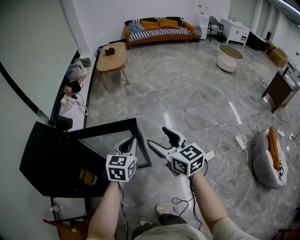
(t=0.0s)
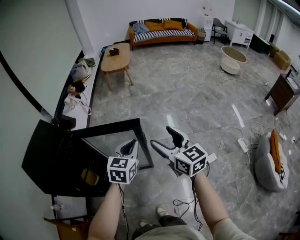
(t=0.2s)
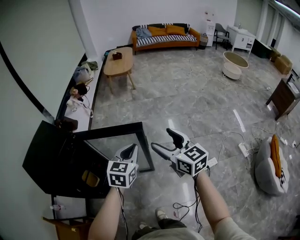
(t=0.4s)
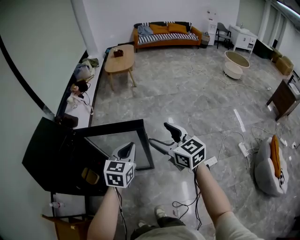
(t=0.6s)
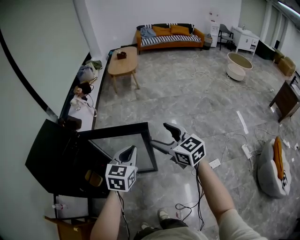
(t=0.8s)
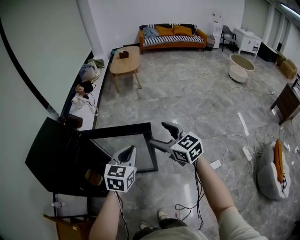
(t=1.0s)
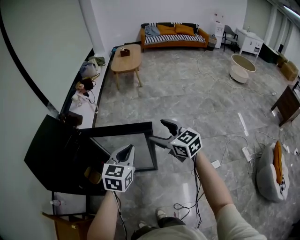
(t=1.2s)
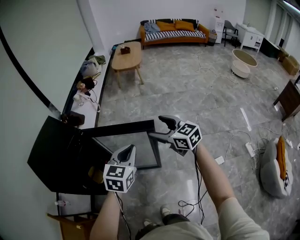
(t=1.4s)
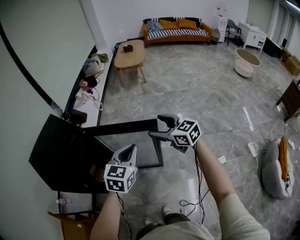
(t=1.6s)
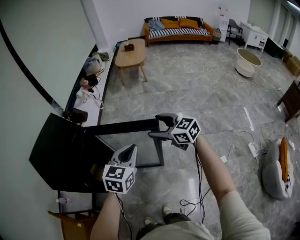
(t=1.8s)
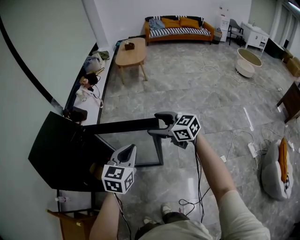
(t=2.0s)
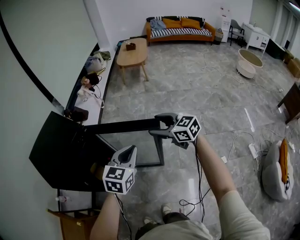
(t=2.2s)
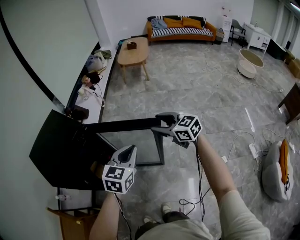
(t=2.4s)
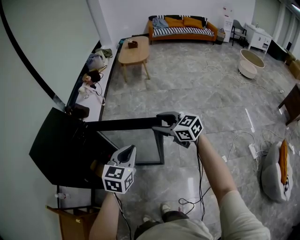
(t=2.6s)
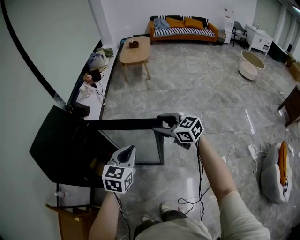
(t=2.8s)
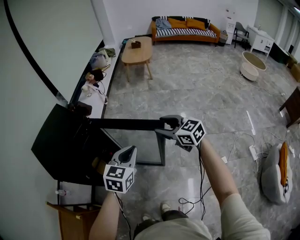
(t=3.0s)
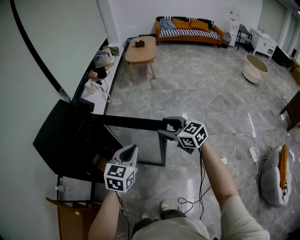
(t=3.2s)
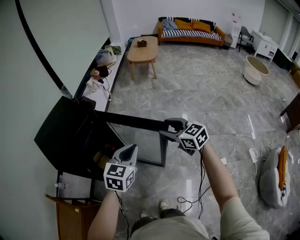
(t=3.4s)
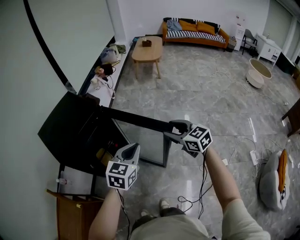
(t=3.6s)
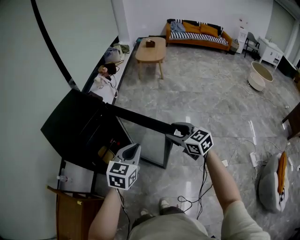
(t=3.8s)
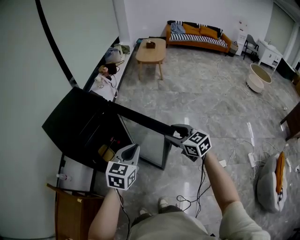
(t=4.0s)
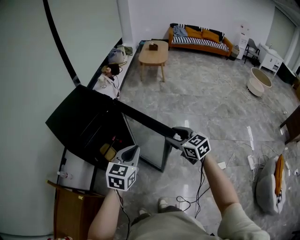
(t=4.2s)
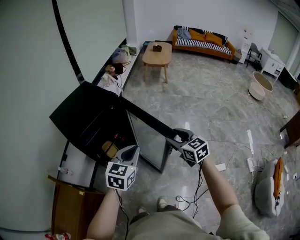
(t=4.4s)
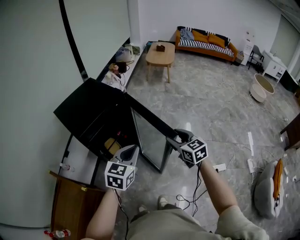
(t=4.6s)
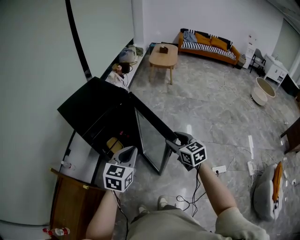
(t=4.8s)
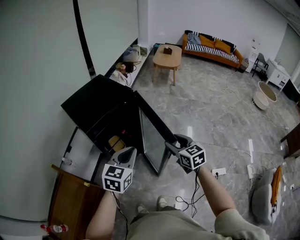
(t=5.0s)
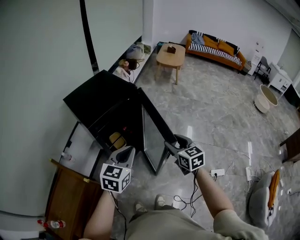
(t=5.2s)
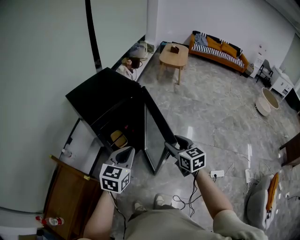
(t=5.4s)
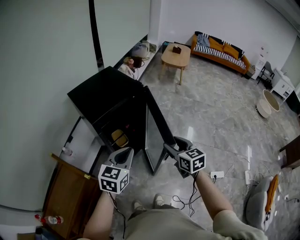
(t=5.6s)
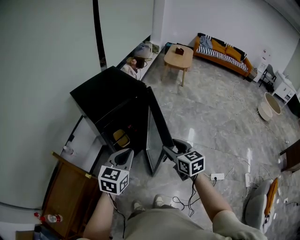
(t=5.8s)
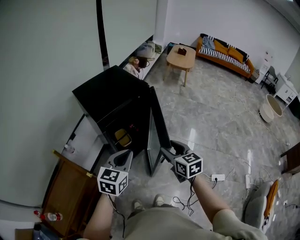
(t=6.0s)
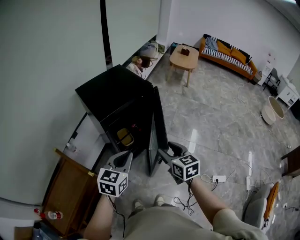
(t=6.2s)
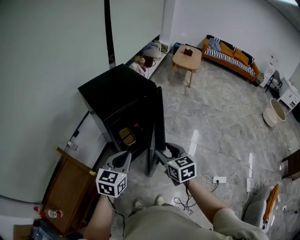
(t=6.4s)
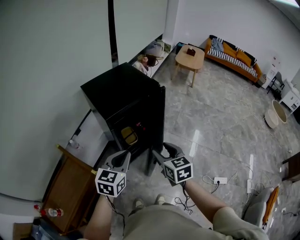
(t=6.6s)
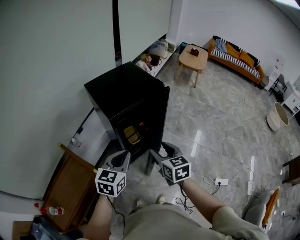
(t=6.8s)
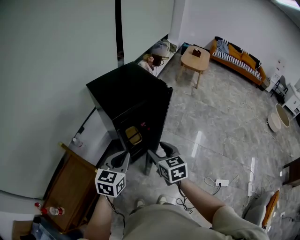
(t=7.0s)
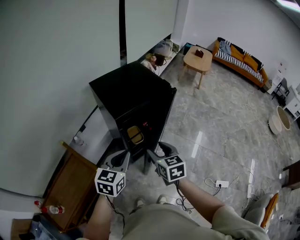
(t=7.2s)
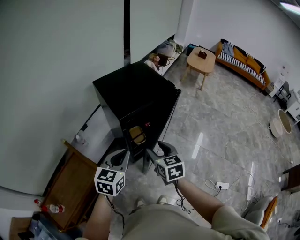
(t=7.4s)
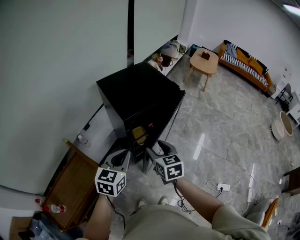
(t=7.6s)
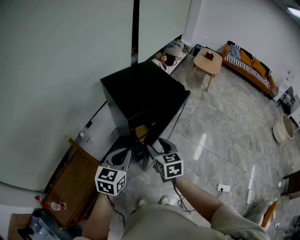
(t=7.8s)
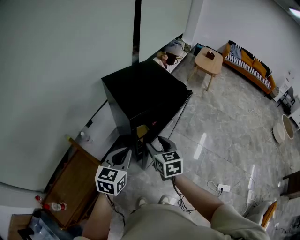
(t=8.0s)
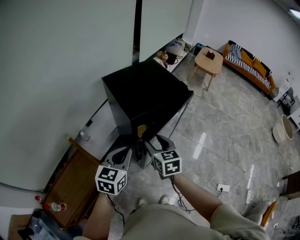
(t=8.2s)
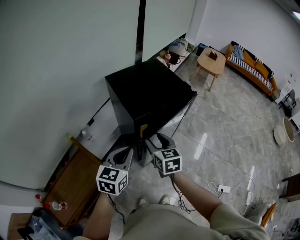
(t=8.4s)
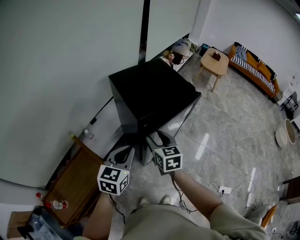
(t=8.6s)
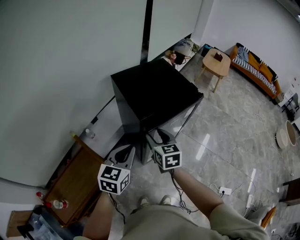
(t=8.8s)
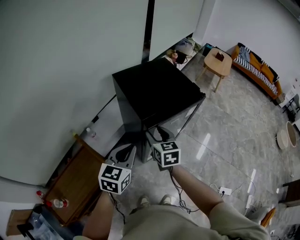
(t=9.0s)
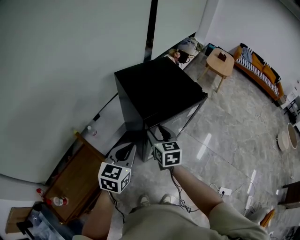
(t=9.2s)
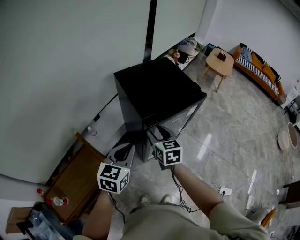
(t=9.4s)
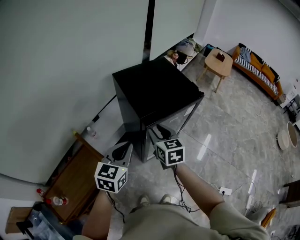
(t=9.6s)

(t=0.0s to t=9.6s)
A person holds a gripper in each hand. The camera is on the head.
t=0.0s - t=1.6s: The right gripper goes some 15 cm forward and to the left, and swivels approximately 30 degrees; the left gripper travels to the left by about 10 cm.
t=1.6s - t=3.2s: The left gripper moves to the left, approximately 5 cm.
t=3.2s - t=4.8s: Both grippers travel together to the left and backward, about 20 cm.
t=4.8s - t=6.4s: Both grippers move to the left, some 15 cm.
t=6.4s - t=8.0s: The right gripper travels to the left and forward by approximately 20 cm. The left gripper is displaced to the left by about 10 cm.
t=8.0s - t=9.6s: The right gripper is displaced forward by about 5 cm.

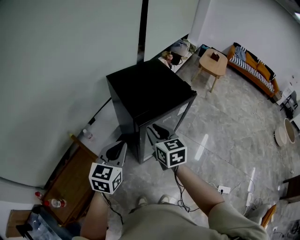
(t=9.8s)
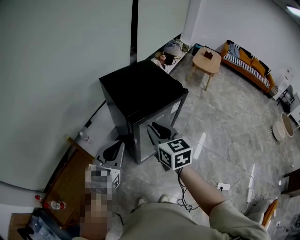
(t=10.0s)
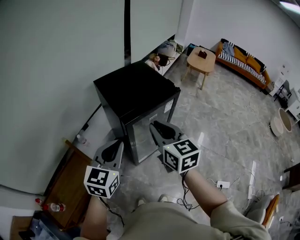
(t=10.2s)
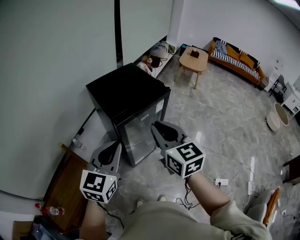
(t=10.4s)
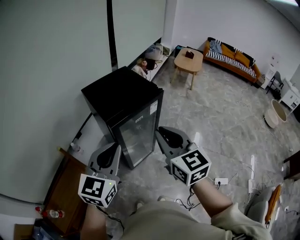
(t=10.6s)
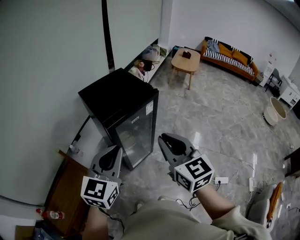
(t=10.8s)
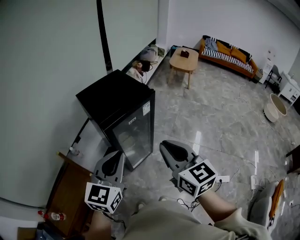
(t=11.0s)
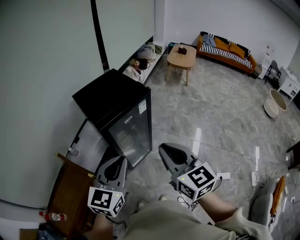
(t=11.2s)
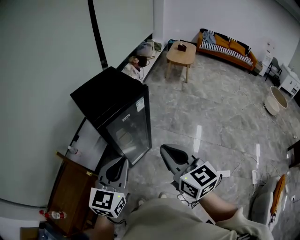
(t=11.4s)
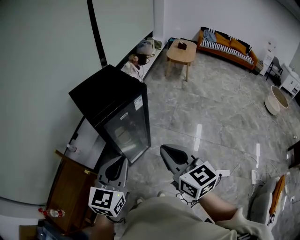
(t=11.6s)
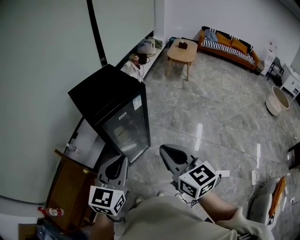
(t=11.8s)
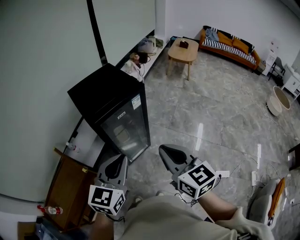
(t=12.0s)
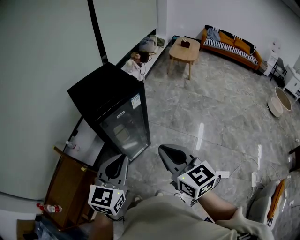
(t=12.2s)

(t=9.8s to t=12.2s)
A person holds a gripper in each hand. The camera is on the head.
t=9.8s - t=11.0s: The grippers both shift to the right, backward and upward by roughly 25 cm.
t=11.0s - t=12.2s: Both grippers travel together to the right, roughly 10 cm.

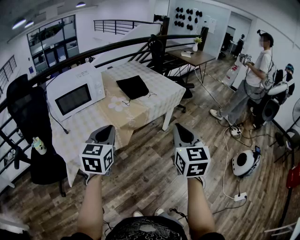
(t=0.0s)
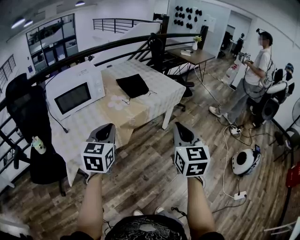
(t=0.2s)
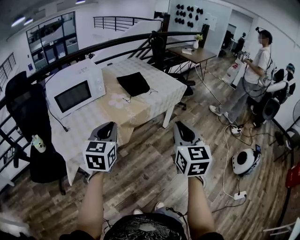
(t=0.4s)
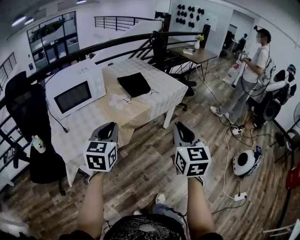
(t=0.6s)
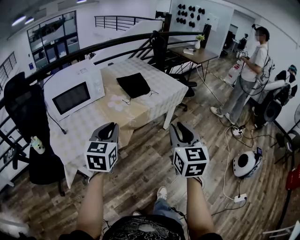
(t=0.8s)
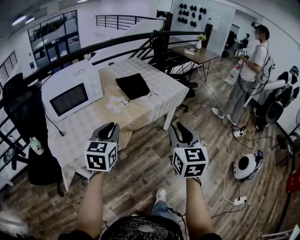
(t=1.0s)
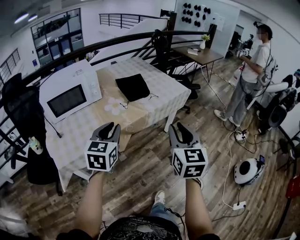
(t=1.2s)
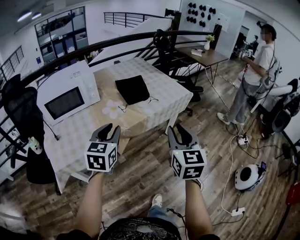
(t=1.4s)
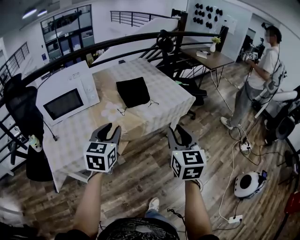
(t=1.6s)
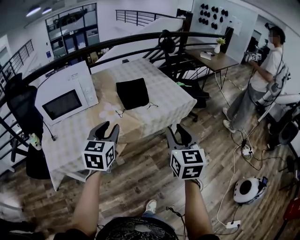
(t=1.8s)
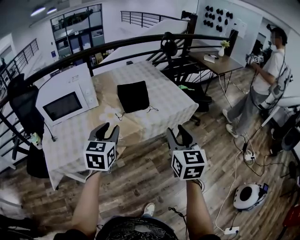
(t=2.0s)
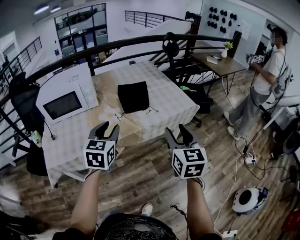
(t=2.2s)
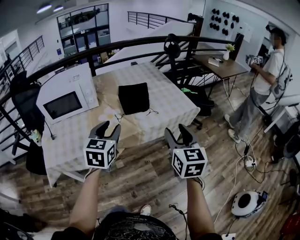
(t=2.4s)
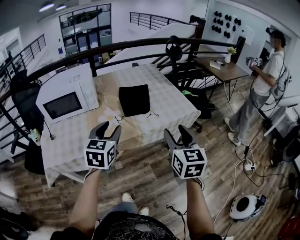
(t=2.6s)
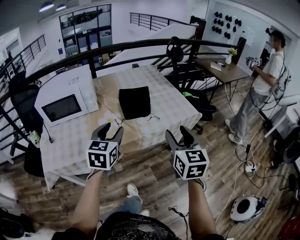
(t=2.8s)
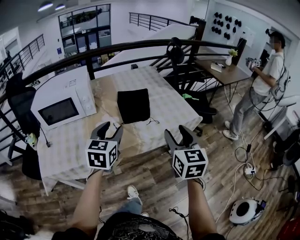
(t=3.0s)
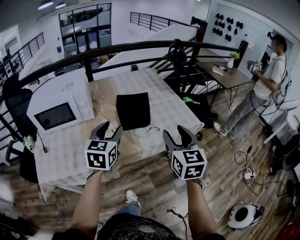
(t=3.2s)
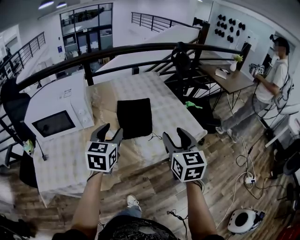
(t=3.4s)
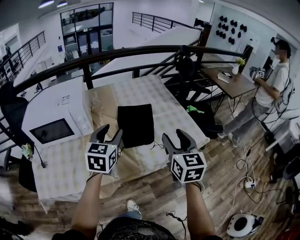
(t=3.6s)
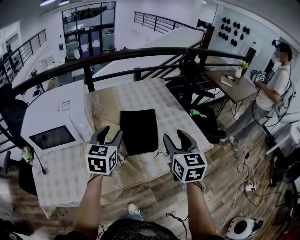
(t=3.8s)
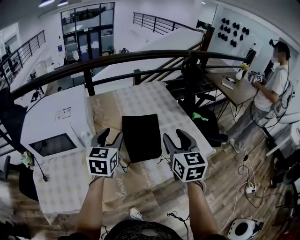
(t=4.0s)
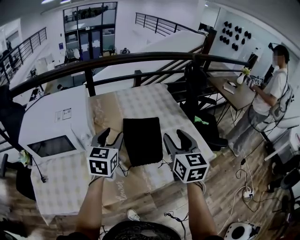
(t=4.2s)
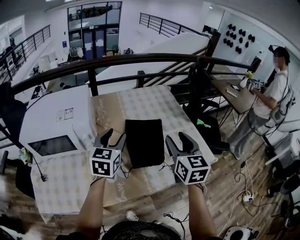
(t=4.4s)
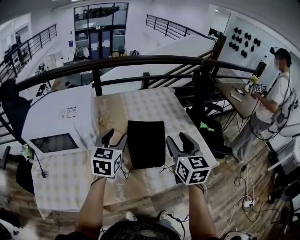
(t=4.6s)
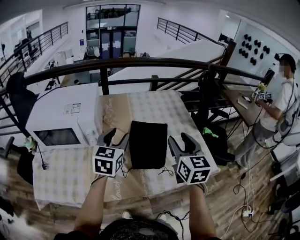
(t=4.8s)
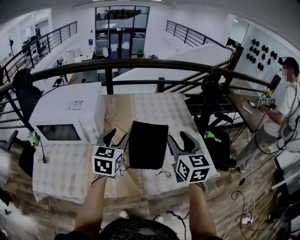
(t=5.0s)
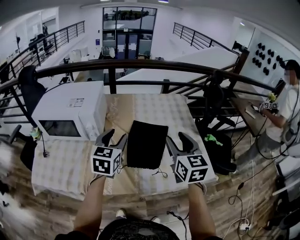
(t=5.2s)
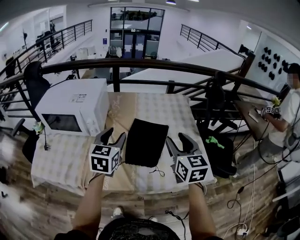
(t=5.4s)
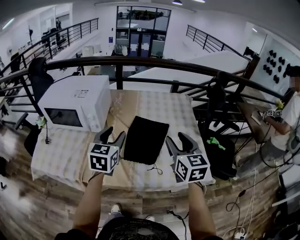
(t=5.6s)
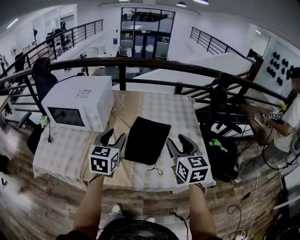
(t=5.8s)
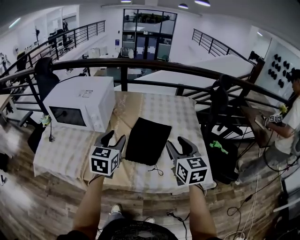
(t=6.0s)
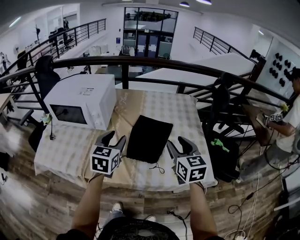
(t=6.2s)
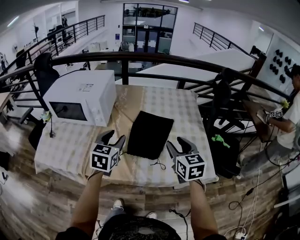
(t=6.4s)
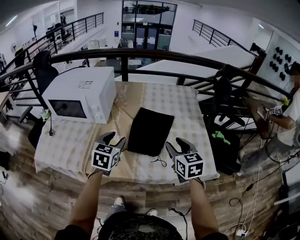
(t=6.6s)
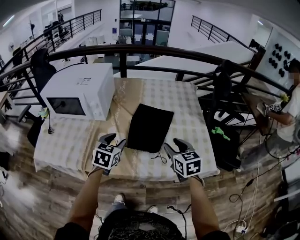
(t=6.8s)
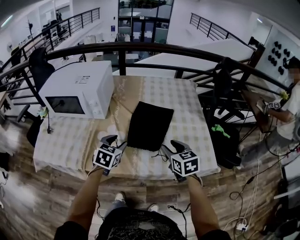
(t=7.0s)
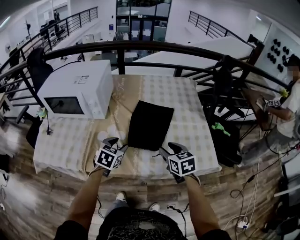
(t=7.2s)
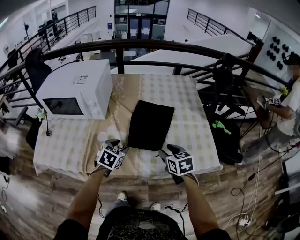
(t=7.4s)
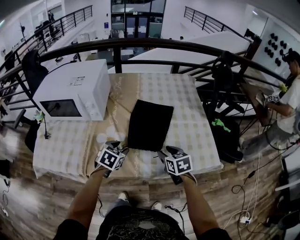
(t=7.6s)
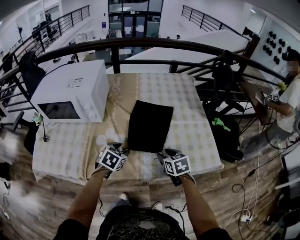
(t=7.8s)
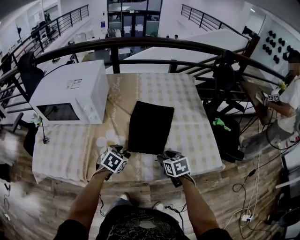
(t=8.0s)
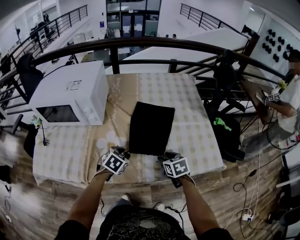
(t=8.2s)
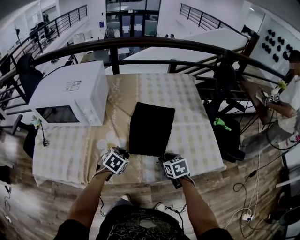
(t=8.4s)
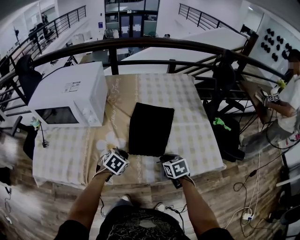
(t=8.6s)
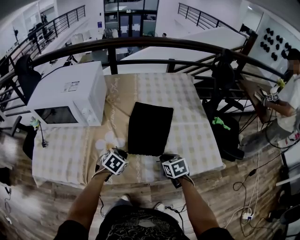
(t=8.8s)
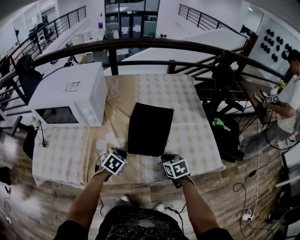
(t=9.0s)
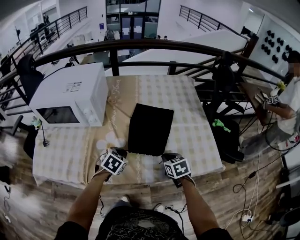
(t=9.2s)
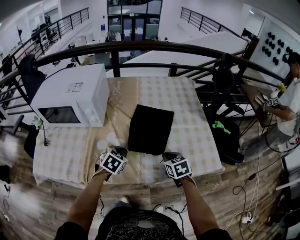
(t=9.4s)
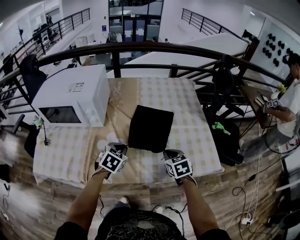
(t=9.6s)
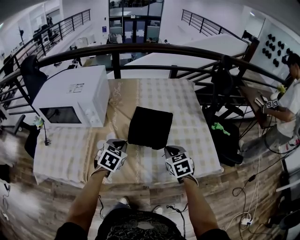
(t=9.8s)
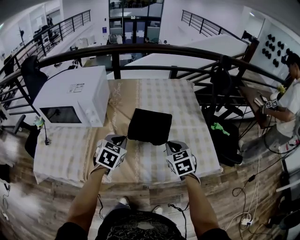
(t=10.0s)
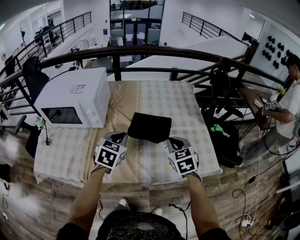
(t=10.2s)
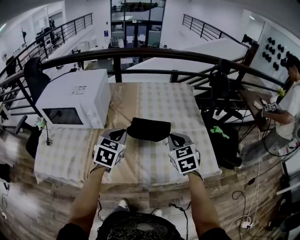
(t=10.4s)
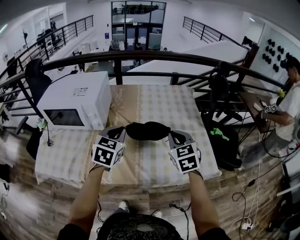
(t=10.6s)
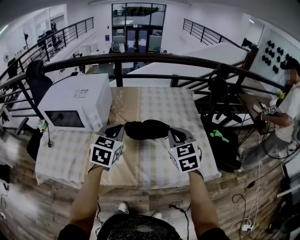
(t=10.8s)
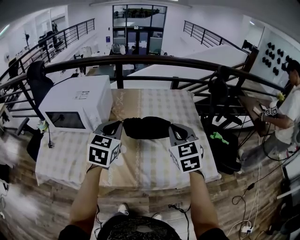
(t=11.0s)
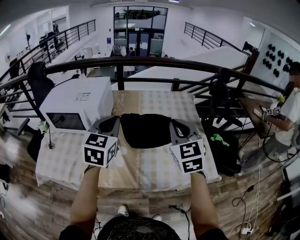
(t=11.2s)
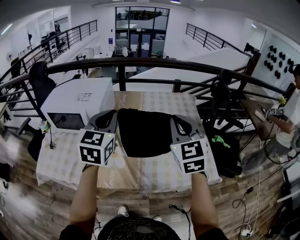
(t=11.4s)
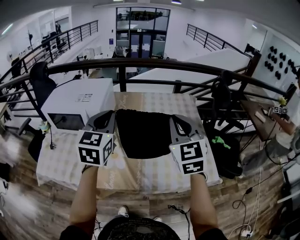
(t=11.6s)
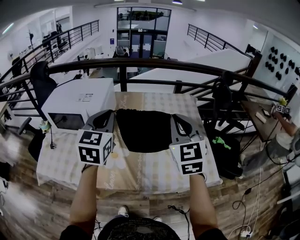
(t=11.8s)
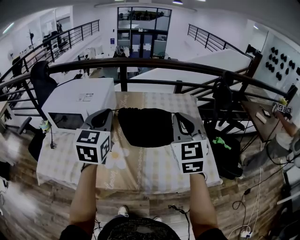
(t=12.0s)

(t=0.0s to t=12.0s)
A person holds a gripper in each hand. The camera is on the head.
t=0.0s - t=1.6s: The right gripper moves forward, some 20 cm, while the left gripper goes about 20 cm forward and to the right, and opens up.
t=1.6s - t=3.0s: The left gripper travels forward and to the right by roughly 15 cm; the right gripper is displaced forward by about 15 cm, and opens its fingers.
t=3.0s - t=4.4s: The grippers both shift forward by roughly 25 cm.
t=4.4s - t=6.0s: The left gripper is displaced backward by about 10 cm, and changes its angle by approximately 20 degrees; the right gripper travels to the right by approximately 5 cm, and swivels roughly 30 degrees.
t=6.0s - t=7.6s: The grippers both shift downward by some 20 cm. The left gripper tips its fingers downward by approximately 30 degrees; the right gripper rotates roughly 30 degrees.
t=7.6s - t=9.0s: The left gripper closes, while the right gripper closes.
t=9.0s - t=10.4s: Both grippers move upward, about 20 cm. The right gripper rotates approximately 30 degrees; the left gripper changes its angle by some 30 degrees.
t=10.4s - t=12.0s: Both grippers move upward, some 20 cm. The left gripper rotates roughly 30 degrees. The right gripper rotates some 30 degrees.
